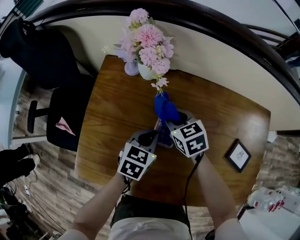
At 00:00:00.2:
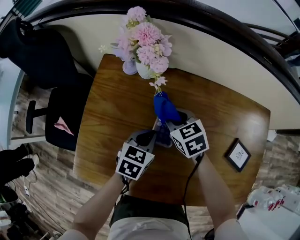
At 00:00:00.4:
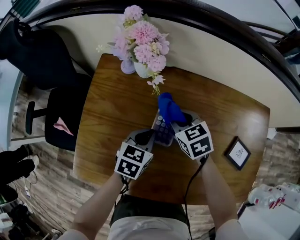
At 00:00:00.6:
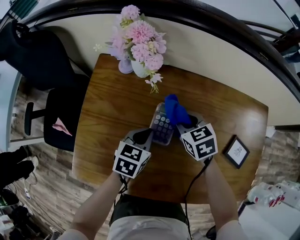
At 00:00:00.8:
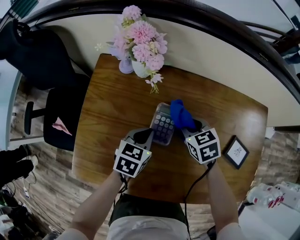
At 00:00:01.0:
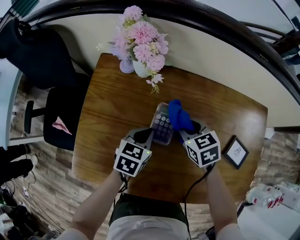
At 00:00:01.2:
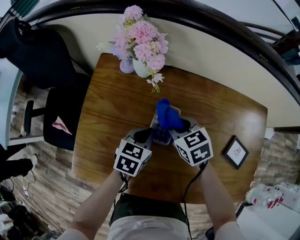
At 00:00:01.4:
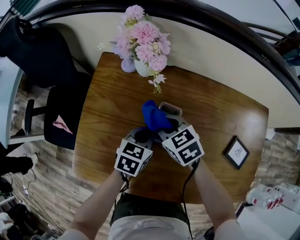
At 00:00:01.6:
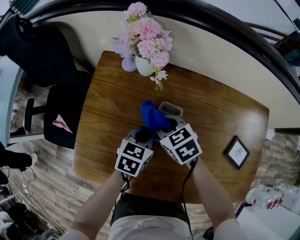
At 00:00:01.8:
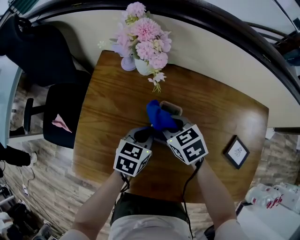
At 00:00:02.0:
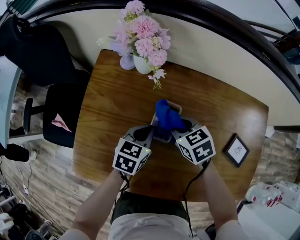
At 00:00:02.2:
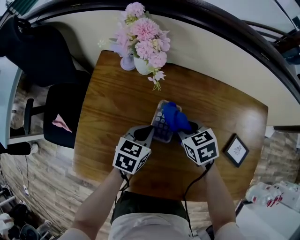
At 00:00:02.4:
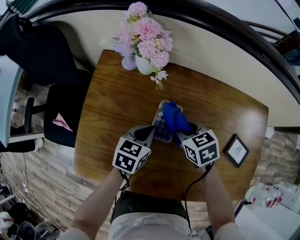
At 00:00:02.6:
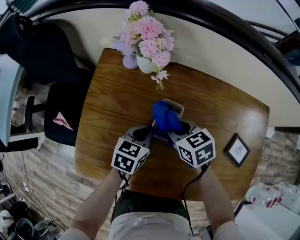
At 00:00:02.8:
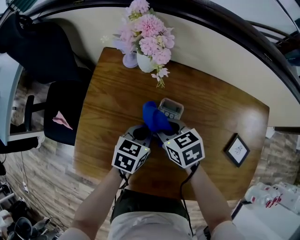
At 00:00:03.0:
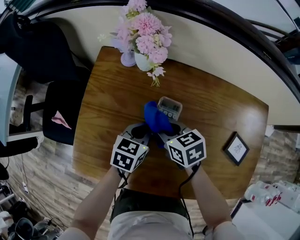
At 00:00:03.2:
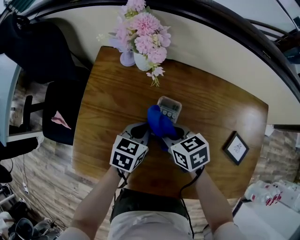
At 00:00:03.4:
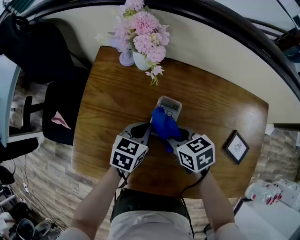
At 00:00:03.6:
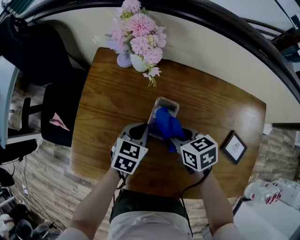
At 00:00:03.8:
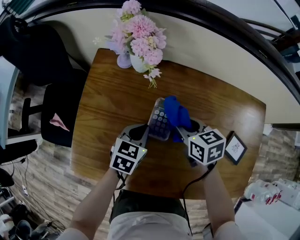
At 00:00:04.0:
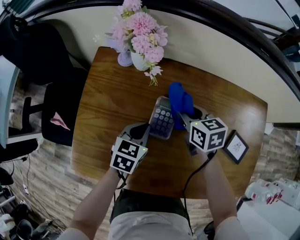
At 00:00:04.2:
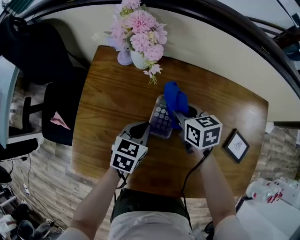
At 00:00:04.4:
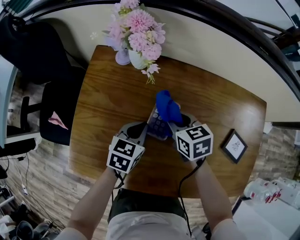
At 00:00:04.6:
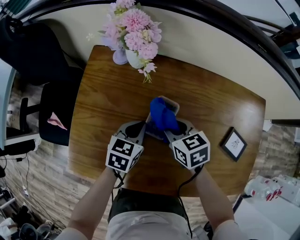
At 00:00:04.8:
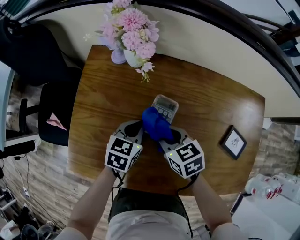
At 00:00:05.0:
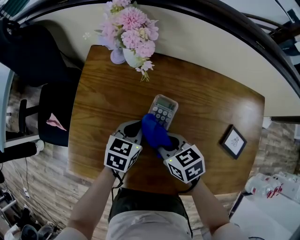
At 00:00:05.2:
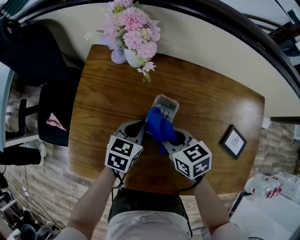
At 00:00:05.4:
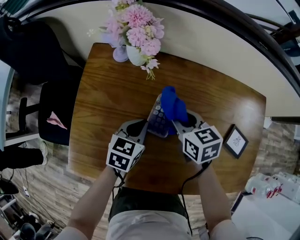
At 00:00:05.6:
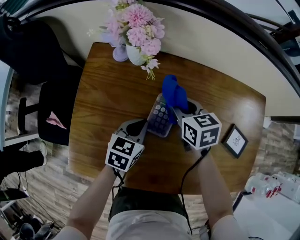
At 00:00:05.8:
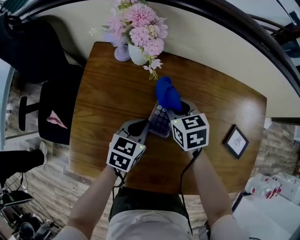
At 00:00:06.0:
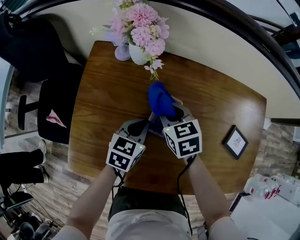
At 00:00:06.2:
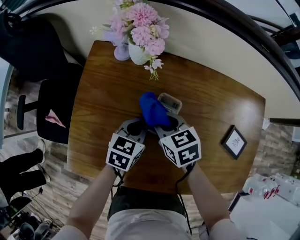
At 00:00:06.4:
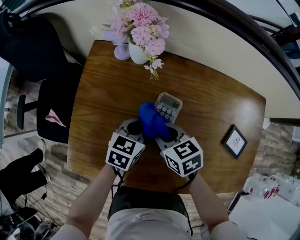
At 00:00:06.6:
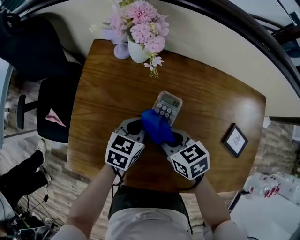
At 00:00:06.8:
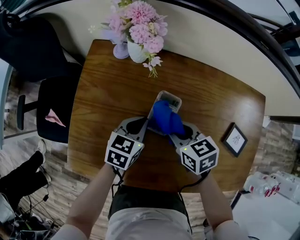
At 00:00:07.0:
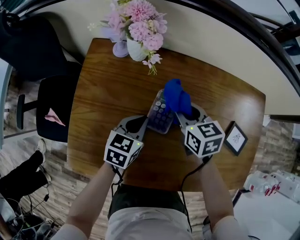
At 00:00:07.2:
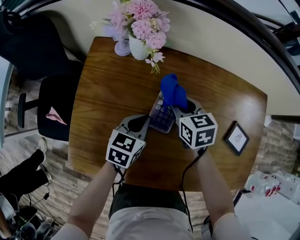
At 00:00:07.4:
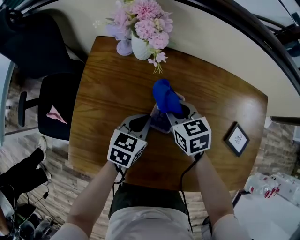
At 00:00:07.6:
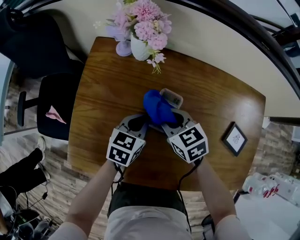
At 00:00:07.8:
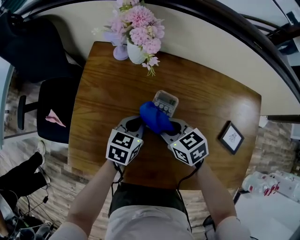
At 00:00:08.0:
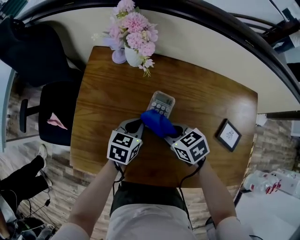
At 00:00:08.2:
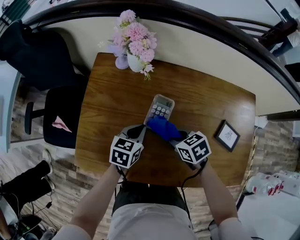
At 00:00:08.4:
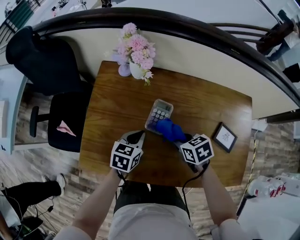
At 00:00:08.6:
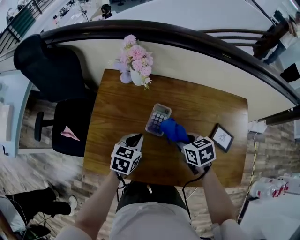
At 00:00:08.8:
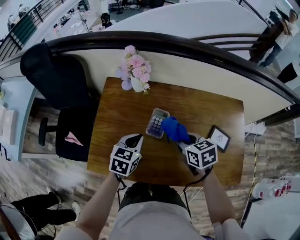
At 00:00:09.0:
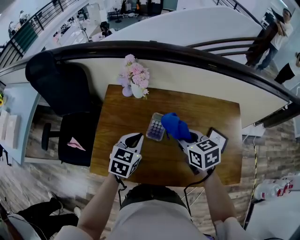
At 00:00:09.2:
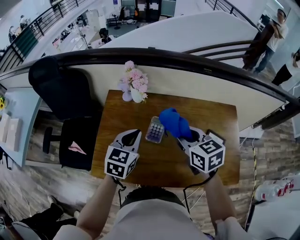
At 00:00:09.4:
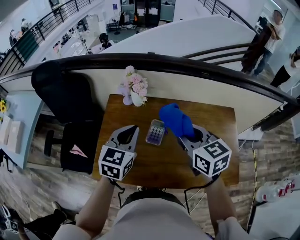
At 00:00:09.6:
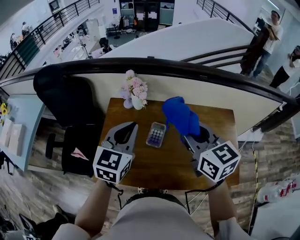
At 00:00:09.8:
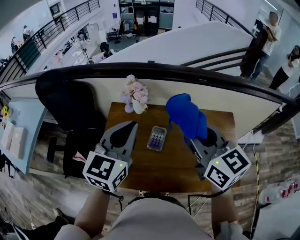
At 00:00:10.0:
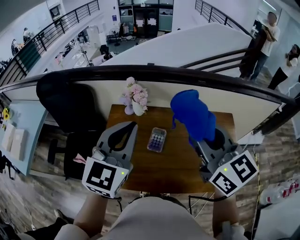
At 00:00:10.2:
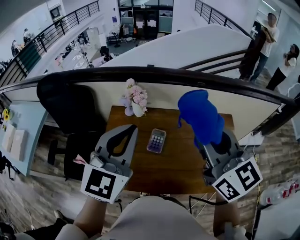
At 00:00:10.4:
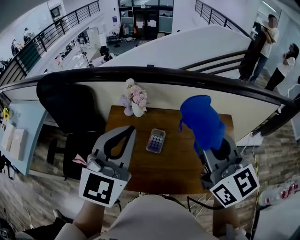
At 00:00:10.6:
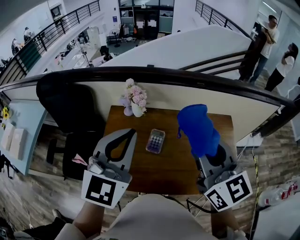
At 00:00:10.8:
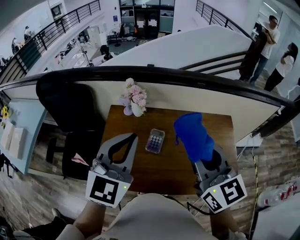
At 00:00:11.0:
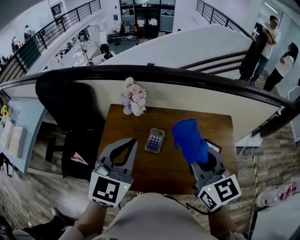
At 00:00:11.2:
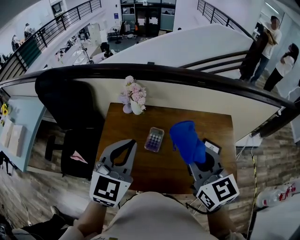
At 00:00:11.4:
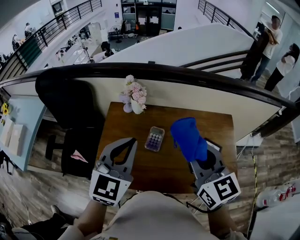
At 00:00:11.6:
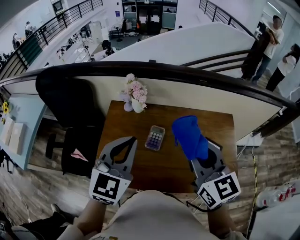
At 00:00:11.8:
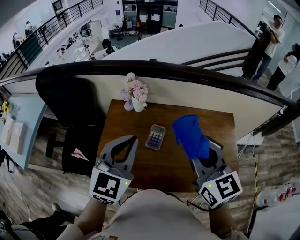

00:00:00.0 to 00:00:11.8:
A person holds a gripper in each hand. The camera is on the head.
00:00:00.0 to 00:00:01.4: The right gripper moves approximately 10 cm to the right and comes back.
00:00:01.4 to 00:00:03.0: The right gripper goes to the right and returns, approximately 10 cm each way.
00:00:03.0 to 00:00:04.4: The right gripper shifts approximately 5 cm to the right.
00:00:04.4 to 00:00:06.0: The right gripper travels backward and back again, some 10 cm each way.
00:00:06.0 to 00:00:07.4: The right gripper reaches some 10 cm backward, then returns.
00:00:07.4 to 00:00:08.8: The right gripper goes about 20 cm upward, backward and to the right, while the left gripper travels upward and backward by about 15 cm.
00:00:08.8 to 00:00:10.4: The two grippers go approximately 40 cm upward. The left gripper tilts its fingers some 40 degrees upward, while the right gripper tips its fingers upward by approximately 50 degrees.
00:00:10.4 to 00:00:11.8: Both grippers move downward, some 10 cm.

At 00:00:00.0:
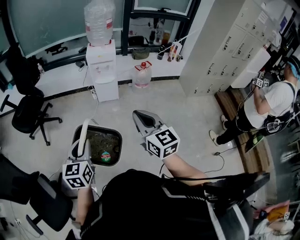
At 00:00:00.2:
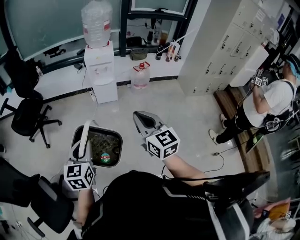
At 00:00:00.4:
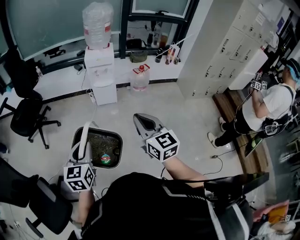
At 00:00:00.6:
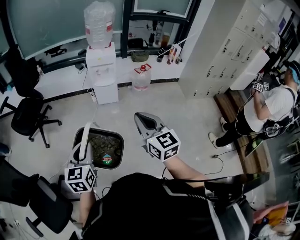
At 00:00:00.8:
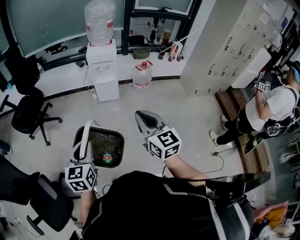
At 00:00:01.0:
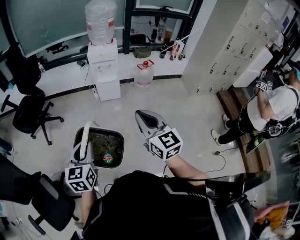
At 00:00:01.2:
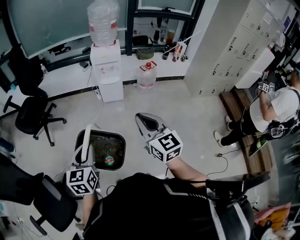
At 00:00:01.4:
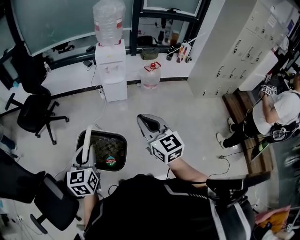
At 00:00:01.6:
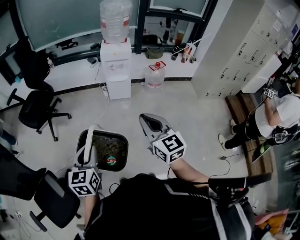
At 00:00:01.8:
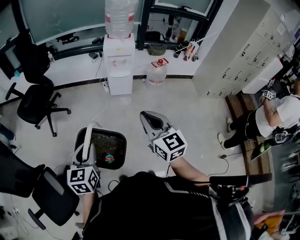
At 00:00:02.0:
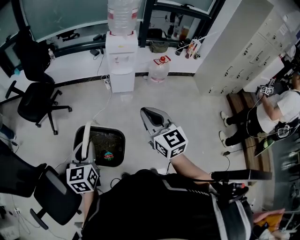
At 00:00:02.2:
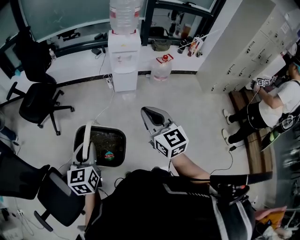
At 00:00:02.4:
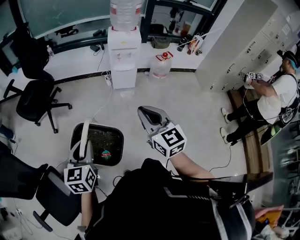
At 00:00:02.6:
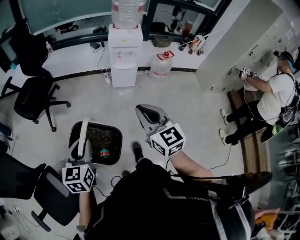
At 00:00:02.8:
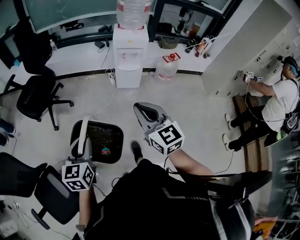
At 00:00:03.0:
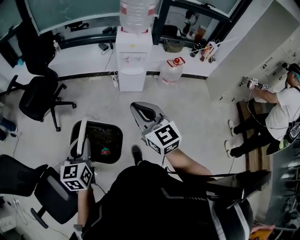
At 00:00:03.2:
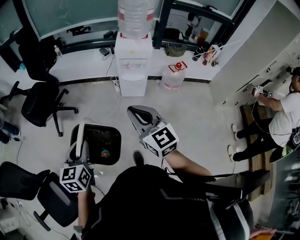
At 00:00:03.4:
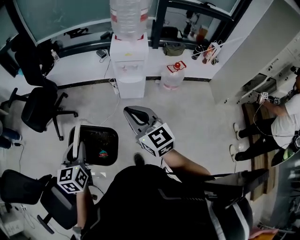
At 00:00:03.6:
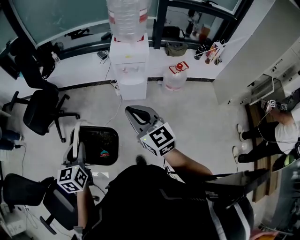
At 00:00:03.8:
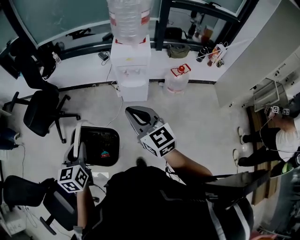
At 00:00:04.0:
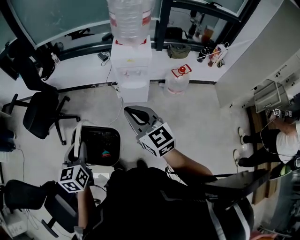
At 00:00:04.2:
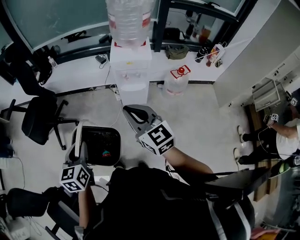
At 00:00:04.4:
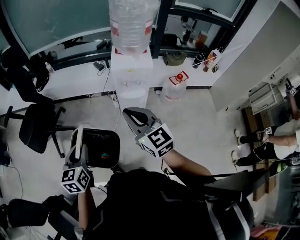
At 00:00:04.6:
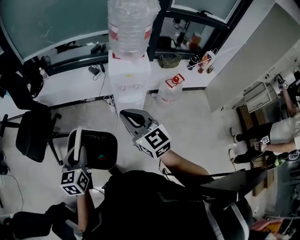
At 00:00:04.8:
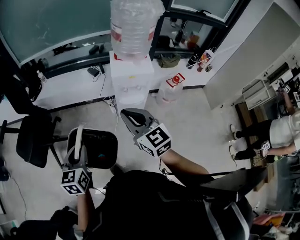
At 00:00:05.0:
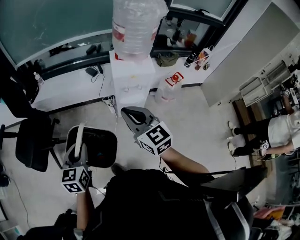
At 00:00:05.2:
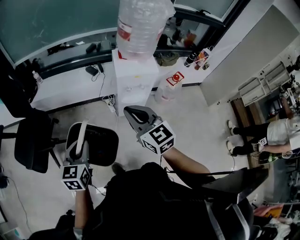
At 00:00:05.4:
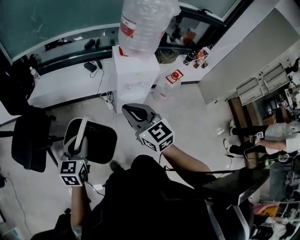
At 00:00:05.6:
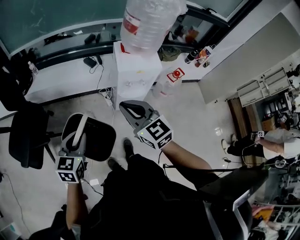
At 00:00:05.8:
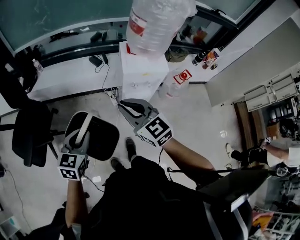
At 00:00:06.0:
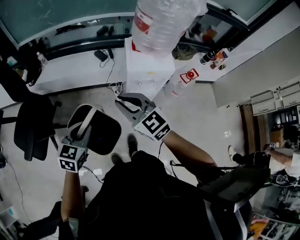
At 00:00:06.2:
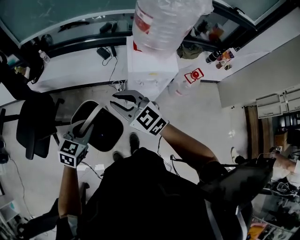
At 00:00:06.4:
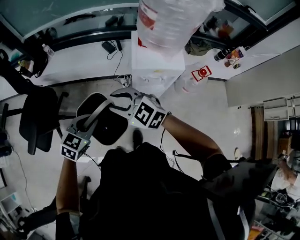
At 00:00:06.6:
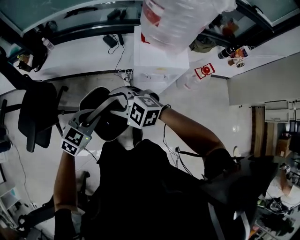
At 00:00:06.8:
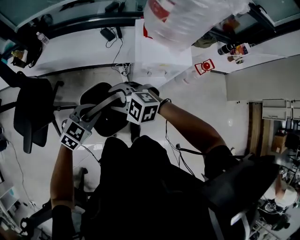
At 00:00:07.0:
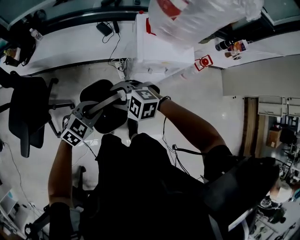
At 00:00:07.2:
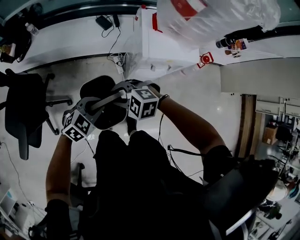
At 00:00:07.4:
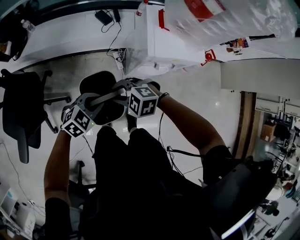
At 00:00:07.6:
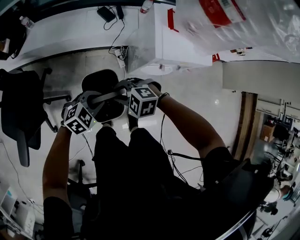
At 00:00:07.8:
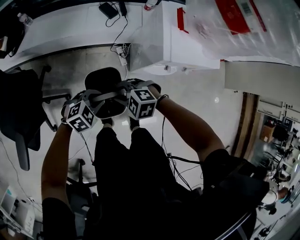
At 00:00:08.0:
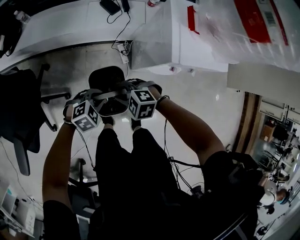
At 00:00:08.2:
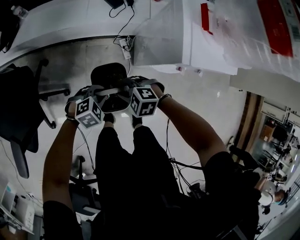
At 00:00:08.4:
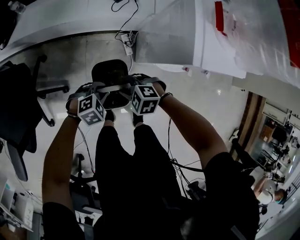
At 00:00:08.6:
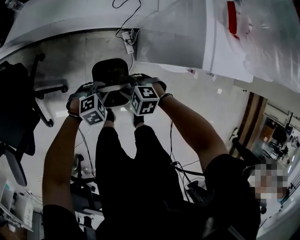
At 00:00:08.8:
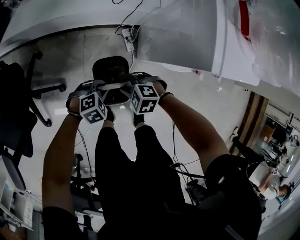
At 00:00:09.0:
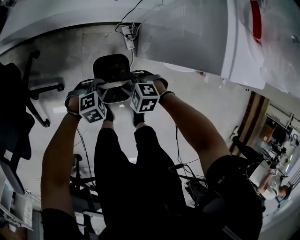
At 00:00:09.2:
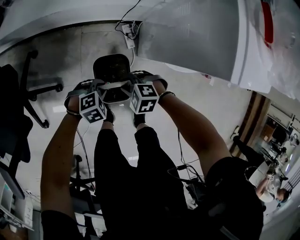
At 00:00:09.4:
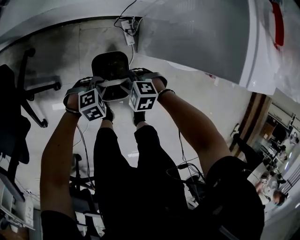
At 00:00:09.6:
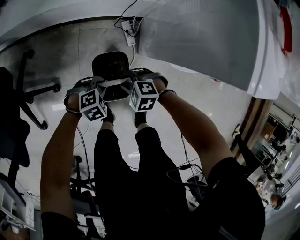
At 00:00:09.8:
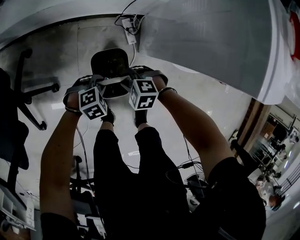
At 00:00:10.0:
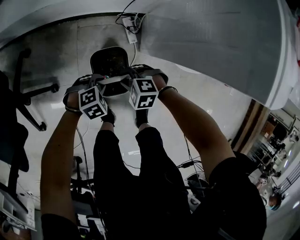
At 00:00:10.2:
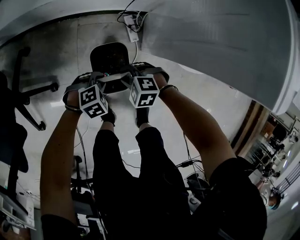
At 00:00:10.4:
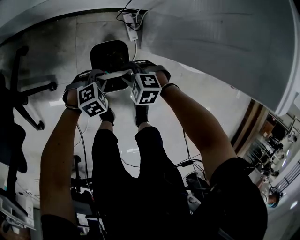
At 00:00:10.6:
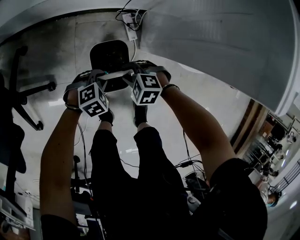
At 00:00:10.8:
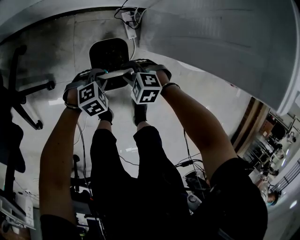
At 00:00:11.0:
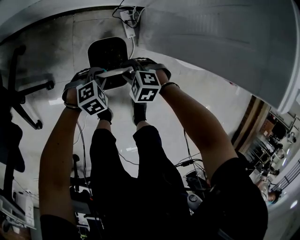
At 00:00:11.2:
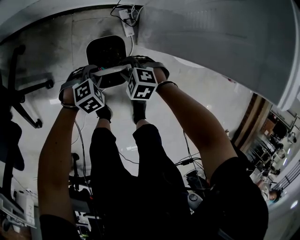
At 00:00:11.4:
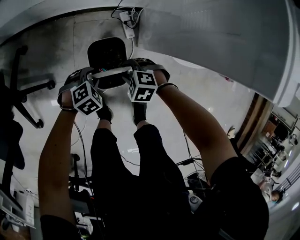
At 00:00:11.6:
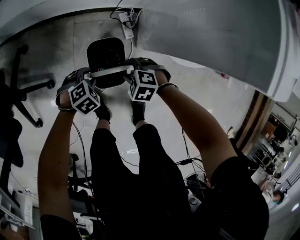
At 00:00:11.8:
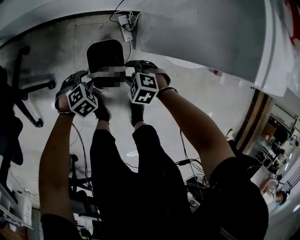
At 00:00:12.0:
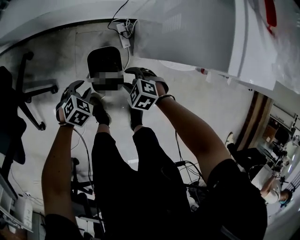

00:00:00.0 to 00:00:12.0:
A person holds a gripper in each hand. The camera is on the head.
00:00:00.0 to 00:00:01.6: The two grippers go roughly 5 cm to the left.
00:00:01.6 to 00:00:03.0: The grippers both shift forward and to the left by some 20 cm.
00:00:03.0 to 00:00:04.4: Both grippers travel together forward, approximately 25 cm.
00:00:04.4 to 00:00:06.0: The left gripper travels forward by roughly 25 cm, and changes its angle by about 30 degrees; the right gripper goes approximately 25 cm forward and to the left.
00:00:06.0 to 00:00:07.6: Both grippers move downward, about 25 cm. The left gripper changes its angle by roughly 40 degrees. The right gripper tilts its fingers approximately 40 degrees downward.
00:00:07.6 to 00:00:09.0: The grippers both shift downward by approximately 30 cm.
00:00:09.0 to 00:00:10.4: Both grippers travel together downward, roughly 10 cm.
00:00:10.4 to 00:00:12.0: The left gripper heads upward, covering roughly 5 cm, and rotates roughly 20 degrees; the right gripper ends up roughly 10 cm from where it was.
